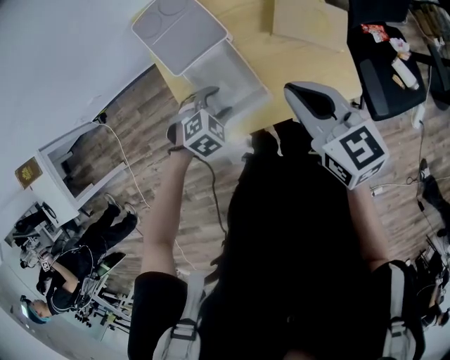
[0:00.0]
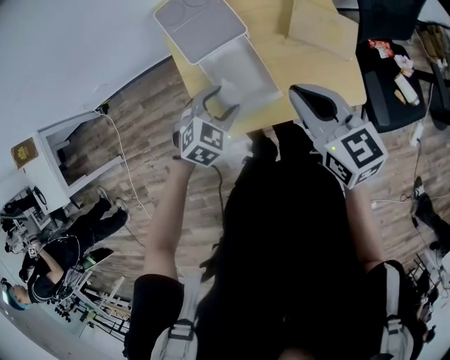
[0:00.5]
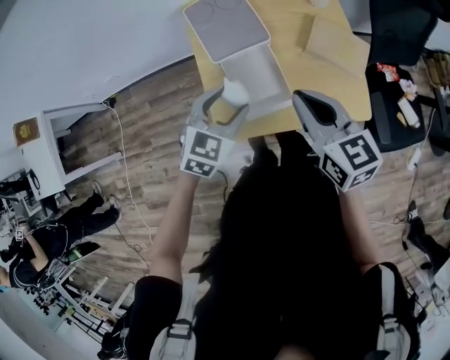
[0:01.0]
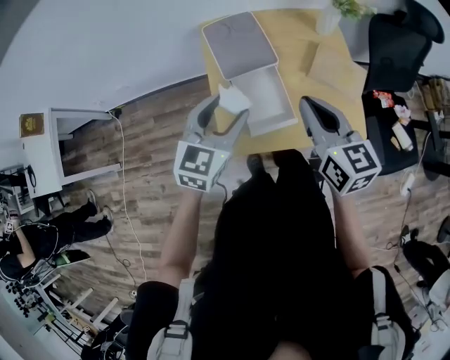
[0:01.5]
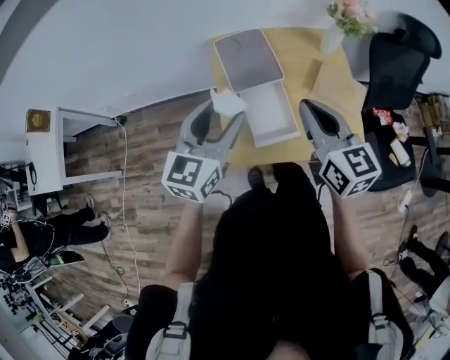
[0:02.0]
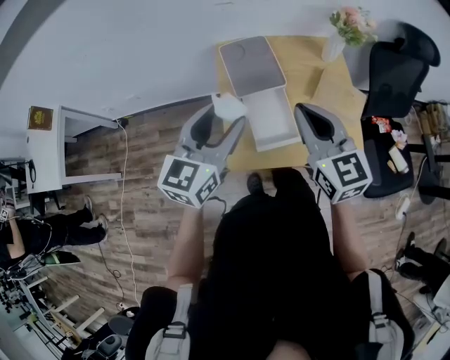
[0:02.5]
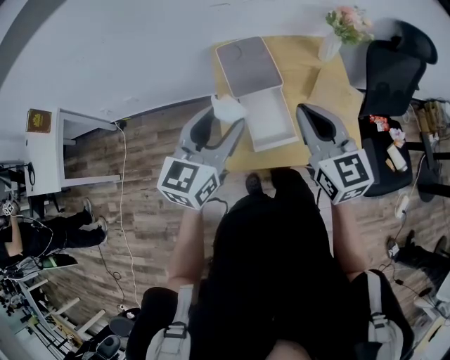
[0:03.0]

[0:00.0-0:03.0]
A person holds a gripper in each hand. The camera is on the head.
0:00.0 to 0:01.5: The left gripper is displaced upward by some 25 cm, and tilts its fingers some 50 degrees upward, while the right gripper travels to the left and upward by some 10 cm.
0:01.5 to 0:03.0: Both grippers move upward, approximately 10 cm.

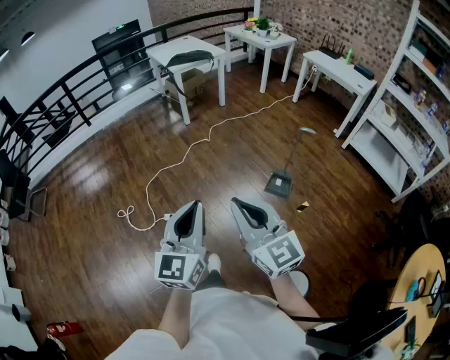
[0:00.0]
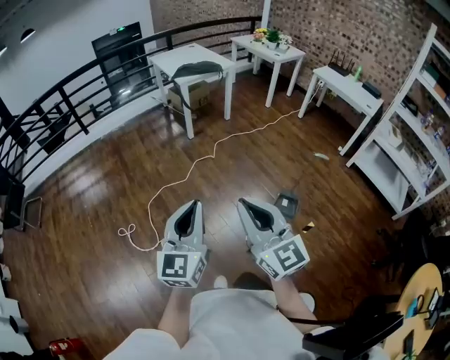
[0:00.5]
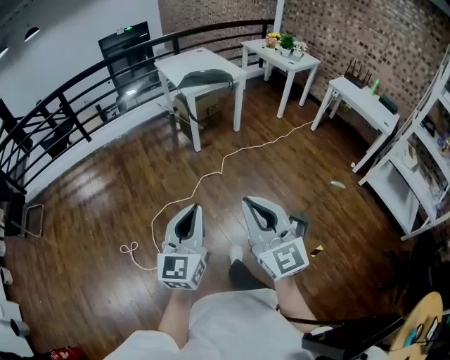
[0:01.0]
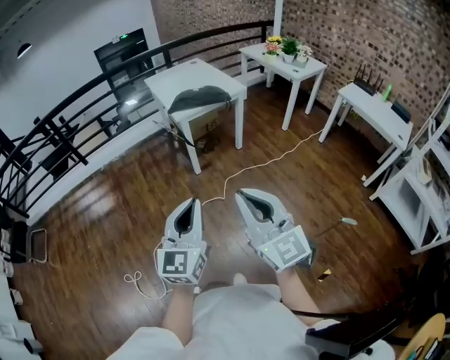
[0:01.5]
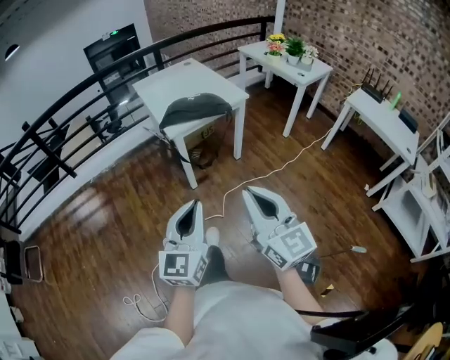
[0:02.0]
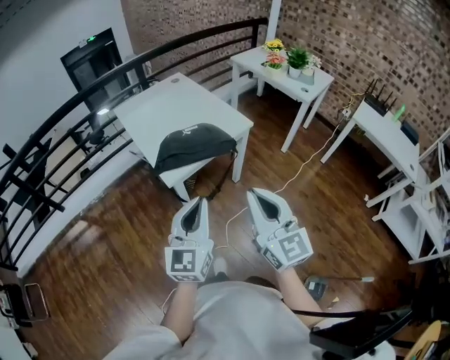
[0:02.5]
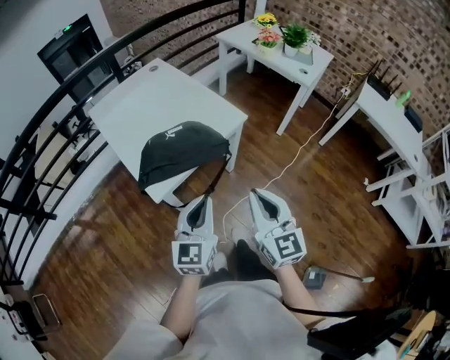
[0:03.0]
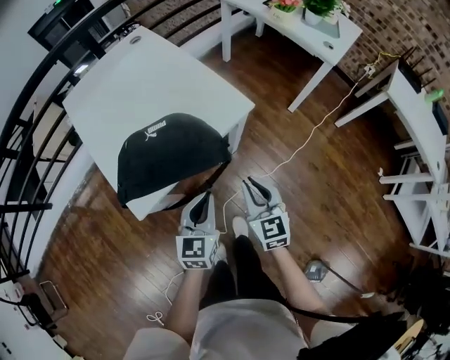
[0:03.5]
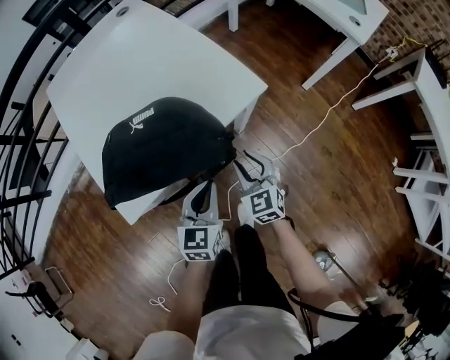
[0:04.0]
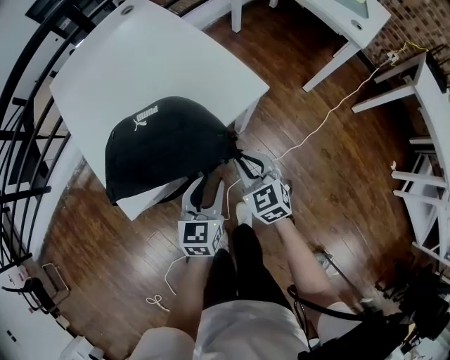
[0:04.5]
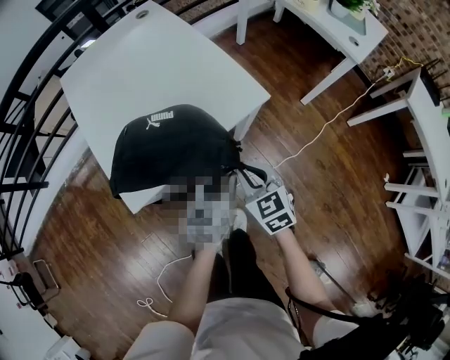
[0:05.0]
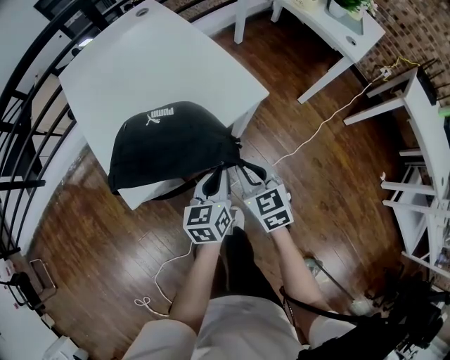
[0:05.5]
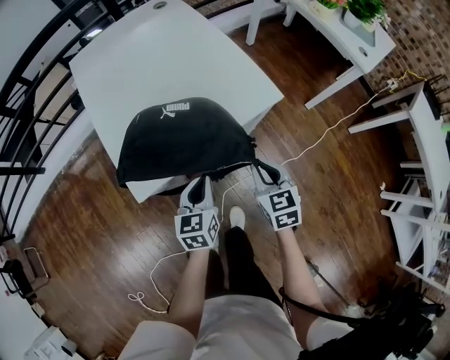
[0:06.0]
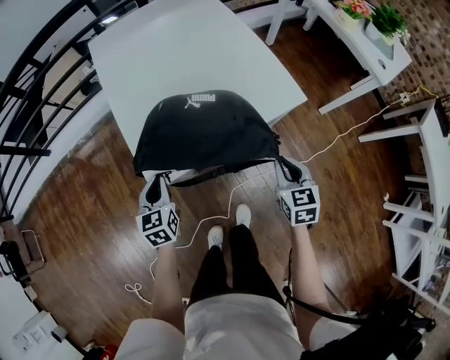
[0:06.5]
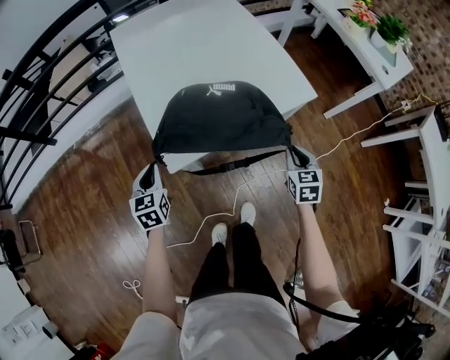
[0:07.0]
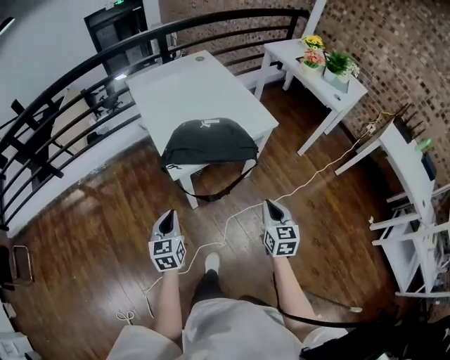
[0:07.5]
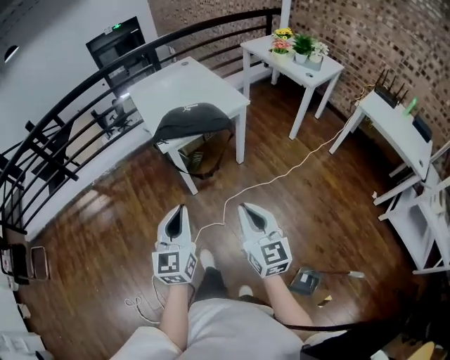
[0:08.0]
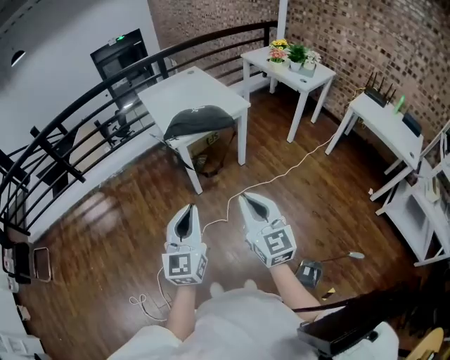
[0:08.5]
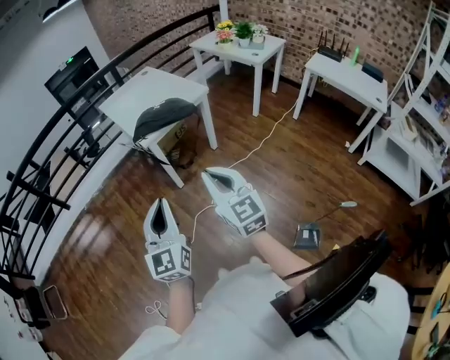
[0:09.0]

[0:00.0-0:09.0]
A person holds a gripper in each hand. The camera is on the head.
0:00.0 to 0:02.0: The two grippers travel together, forward, about 80 cm.
0:02.0 to 0:04.5: Both grippers are carried forward, roughly 60 cm. Both grippers travel together downward, some 35 cm. The right gripper tips its fingers downward by about 40 degrees, and opens and closes again, while the left gripper angles its fingers downward, by roughly 30 degrees, and opens up.
0:04.5 to 0:07.0: The left gripper heads to the left, covering about 35 cm, swivels some 30 degrees, and closes up.
0:07.0 to 0:09.0: The pair of grippers is taken backward, approximately 60 cm. The two grippers go roughly 35 cm upward. The right gripper tilts its fingers roughly 40 degrees upward. The left gripper angles its fingers upward, by roughly 40 degrees.

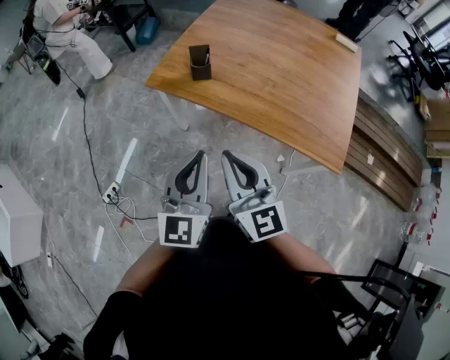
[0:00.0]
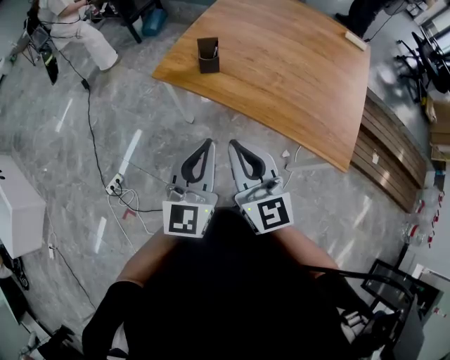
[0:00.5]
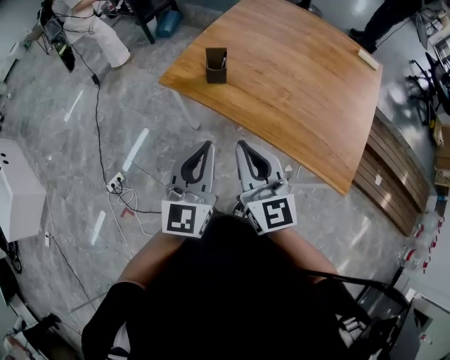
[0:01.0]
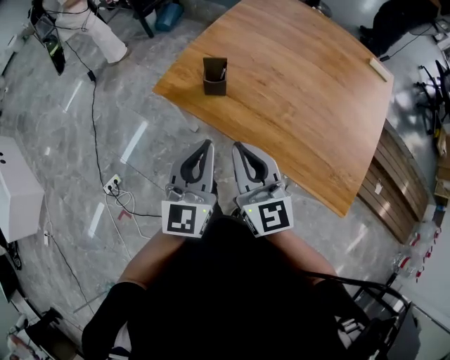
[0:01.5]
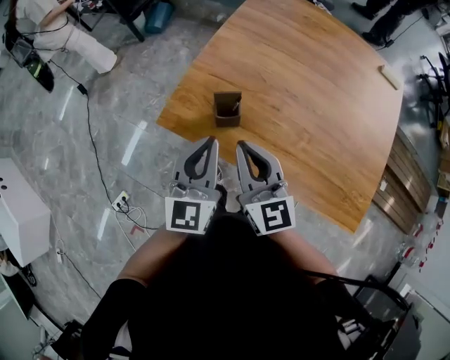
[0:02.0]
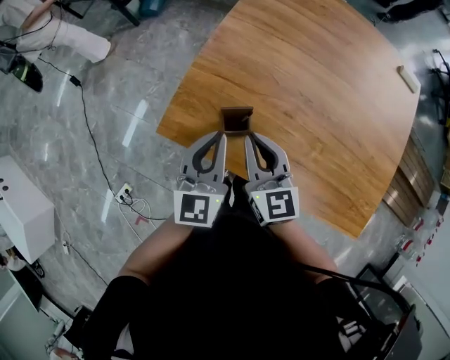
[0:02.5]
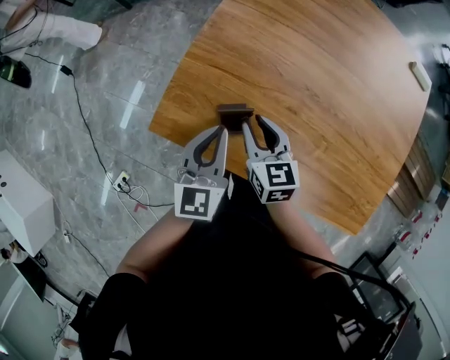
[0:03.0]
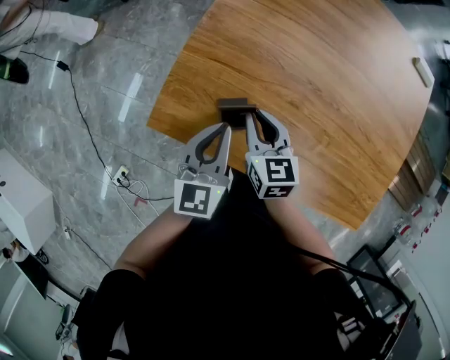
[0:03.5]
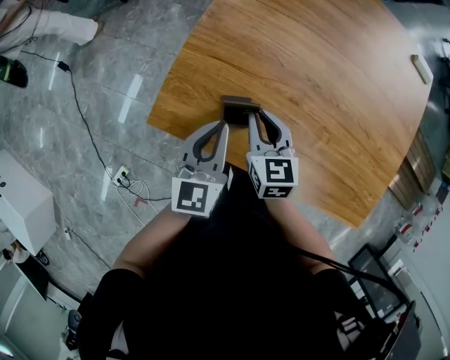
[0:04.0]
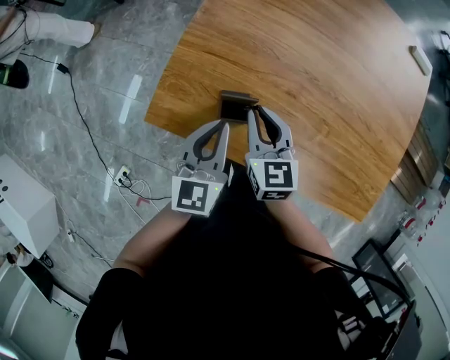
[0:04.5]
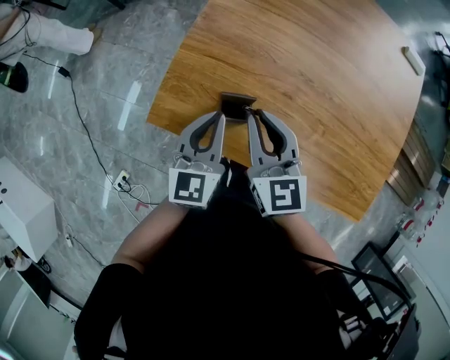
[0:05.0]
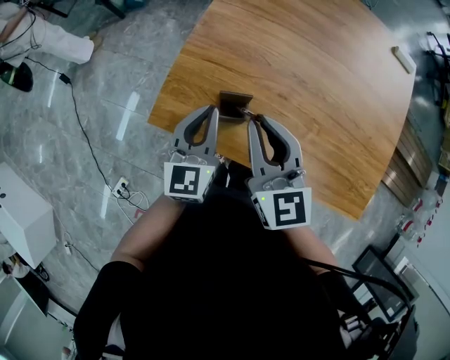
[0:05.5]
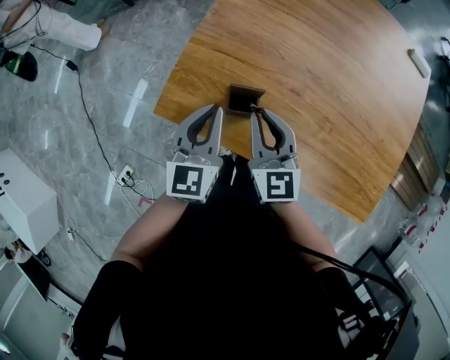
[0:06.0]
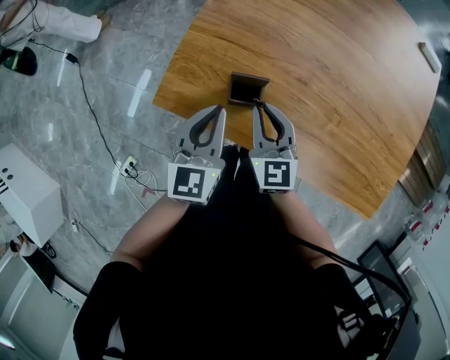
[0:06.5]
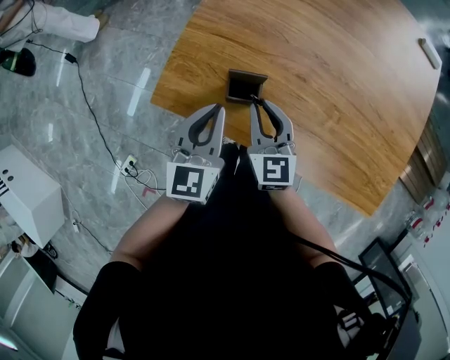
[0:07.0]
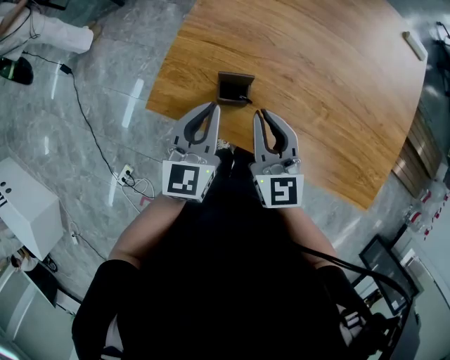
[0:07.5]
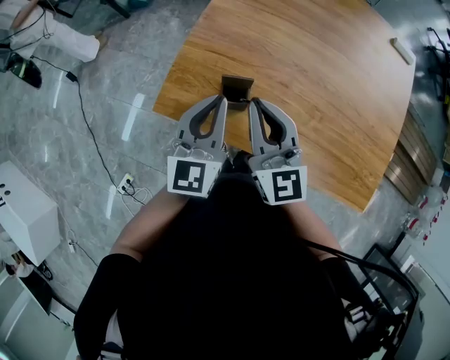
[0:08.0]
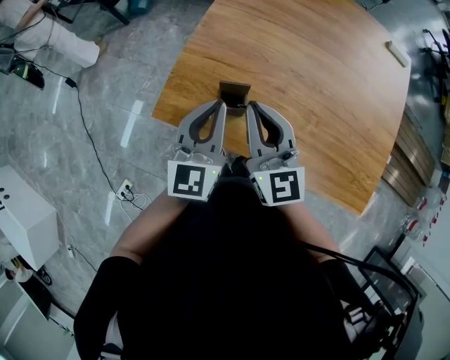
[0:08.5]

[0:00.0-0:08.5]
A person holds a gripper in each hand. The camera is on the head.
0:00.0 to 0:02.0: Both grippers move forward, roughly 35 cm.
0:02.0 to 0:04.0: Both grippers travel together downward and forward, roughly 20 cm. The right gripper rotates about 30 degrees.
0:04.0 to 0:06.5: The right gripper moves some 15 cm upward and comes back.
0:06.5 to 0:08.5: The right gripper heads upward, covering approximately 15 cm; the left gripper moves upward, about 10 cm.

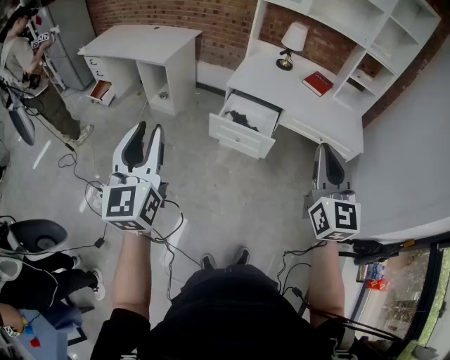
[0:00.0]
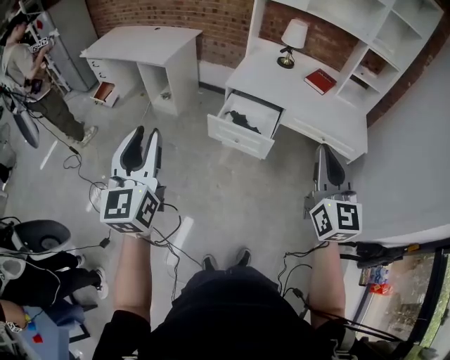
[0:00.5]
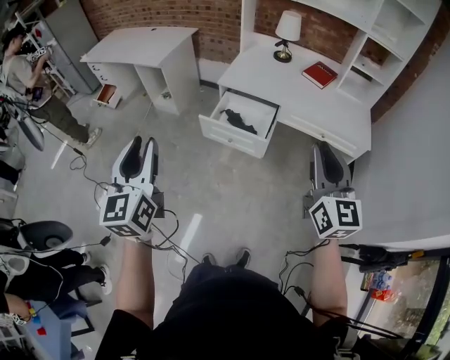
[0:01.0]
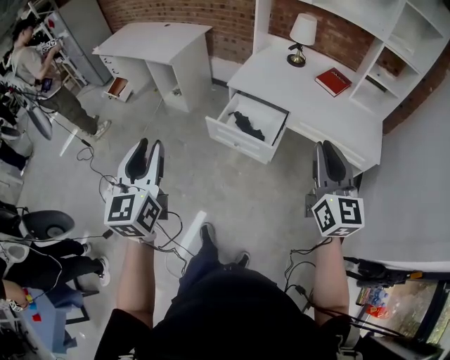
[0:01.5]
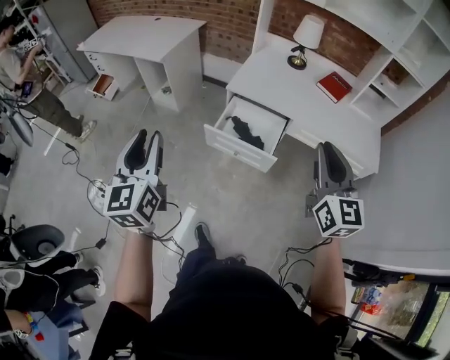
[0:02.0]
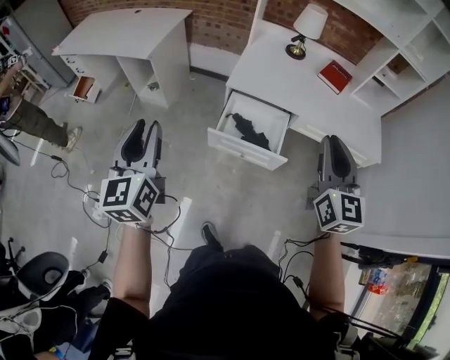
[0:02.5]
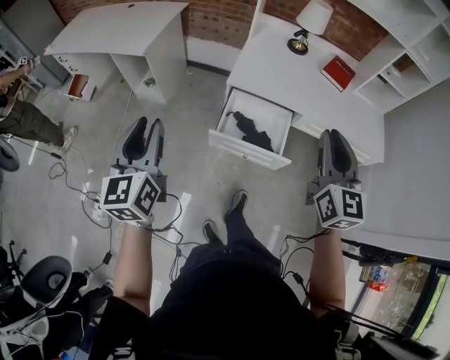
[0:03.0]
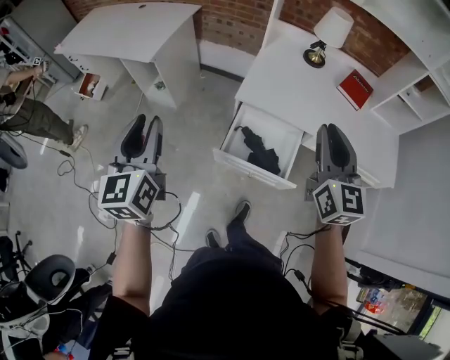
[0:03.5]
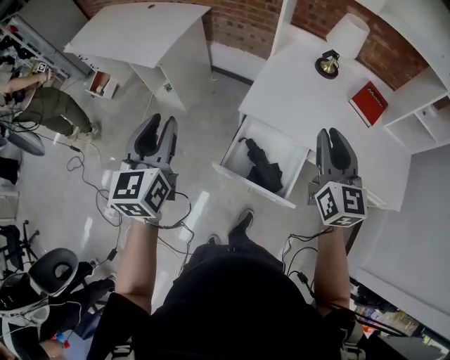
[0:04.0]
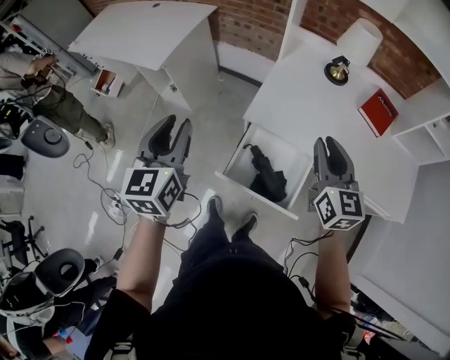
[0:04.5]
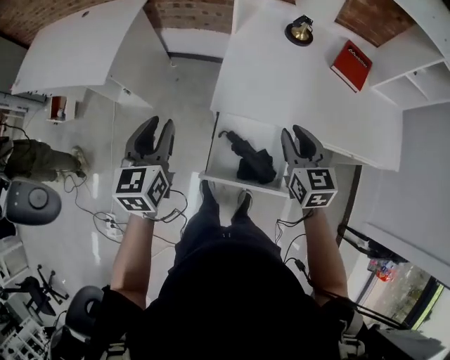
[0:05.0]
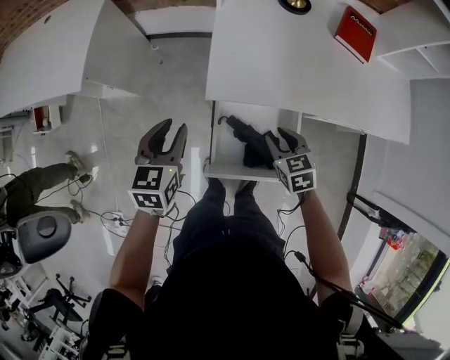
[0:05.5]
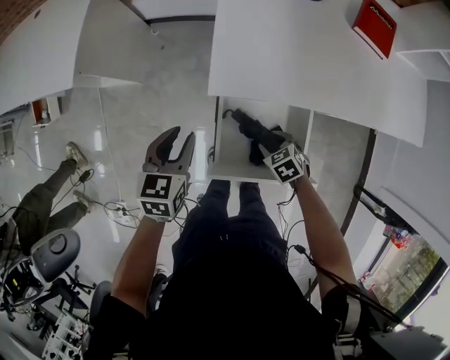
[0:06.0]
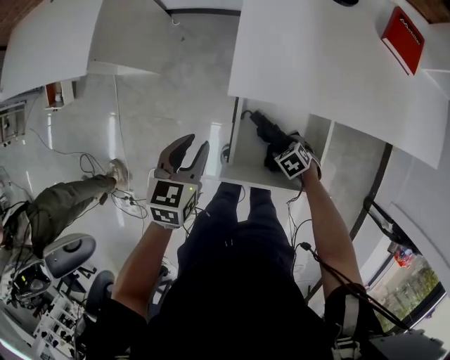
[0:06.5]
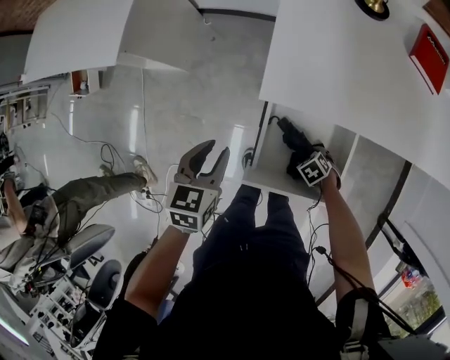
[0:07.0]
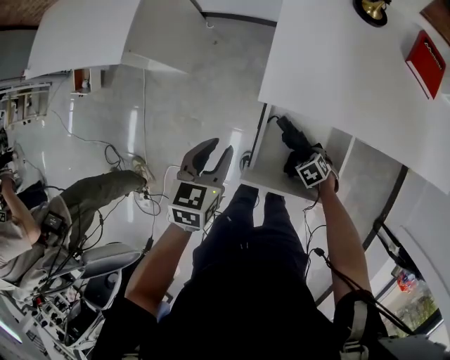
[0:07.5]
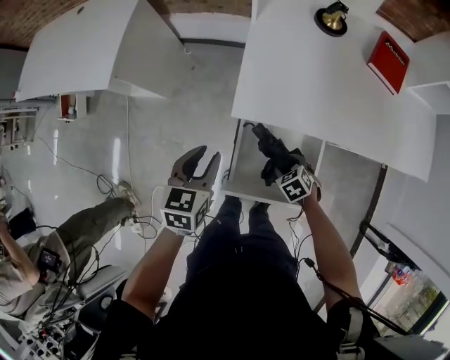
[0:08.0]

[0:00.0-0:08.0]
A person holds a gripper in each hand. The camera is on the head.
0:00.0 to 0:02.0: The left gripper shifts roughly 20 cm forward and downward; the right gripper heads forward and to the right, covering about 20 cm.
0:02.0 to 0:04.0: The two grippers go roughly 35 cm forward.
0:04.0 to 0:06.0: The right gripper moves downward, approximately 50 cm, and tips its fingers downward by approximately 60 degrees, while the left gripper goes some 35 cm downward and forward, and angles its fingers downward, by some 30 degrees.
0:06.0 to 0:08.0: The right gripper reaches roughly 10 cm downward, then returns.
